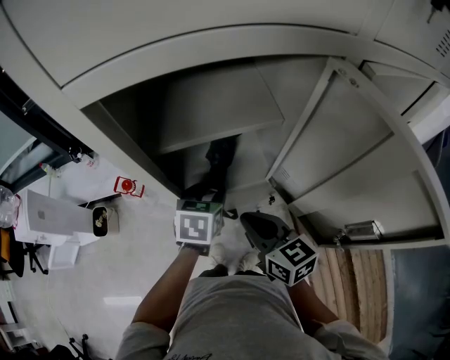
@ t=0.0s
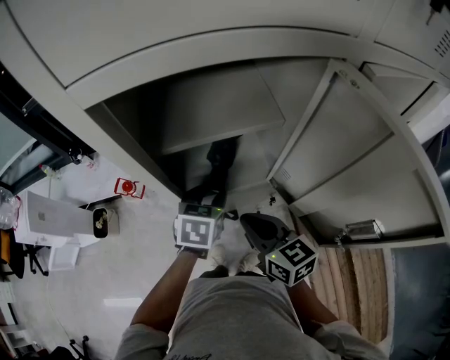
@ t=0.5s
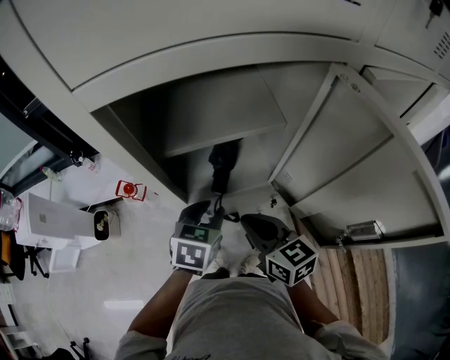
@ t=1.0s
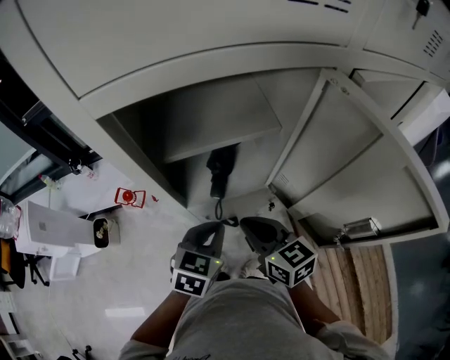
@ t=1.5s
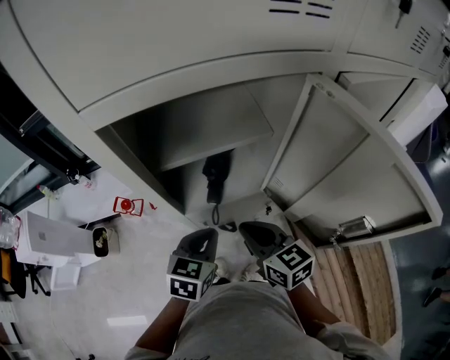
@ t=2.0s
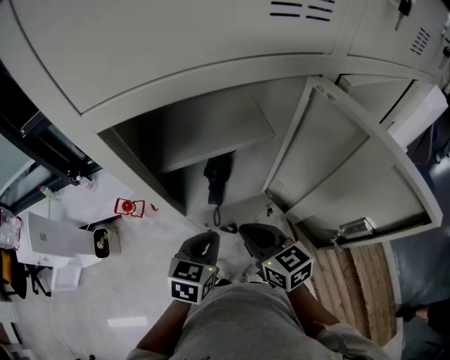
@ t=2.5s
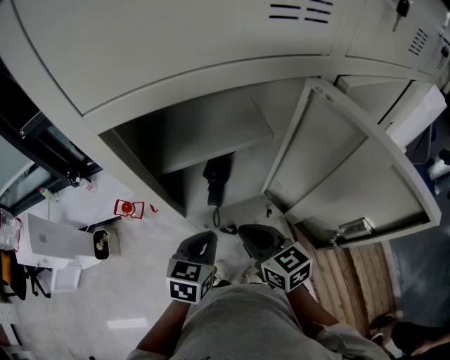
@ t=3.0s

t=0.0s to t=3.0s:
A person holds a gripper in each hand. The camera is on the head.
t=0.0s to t=1.5s: The left gripper heads backward, covering approximately 10 cm, and closes its fingers.
t=1.5s to t=3.0s: There are only small adjustments of the grippers.

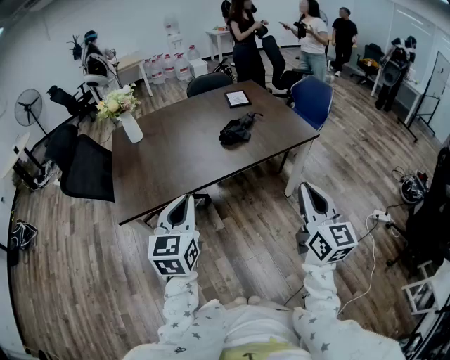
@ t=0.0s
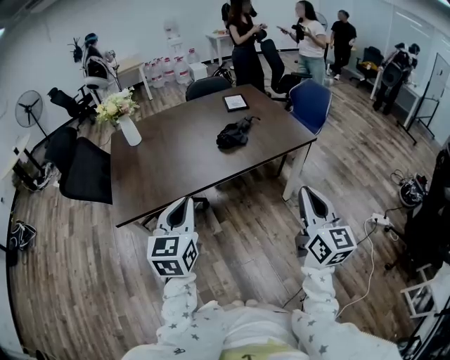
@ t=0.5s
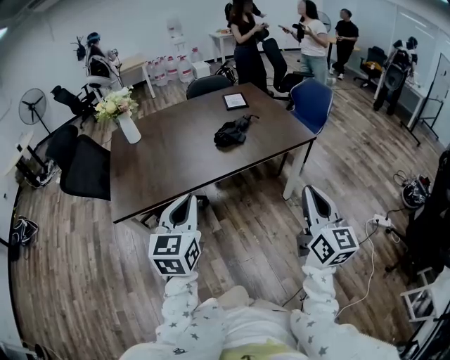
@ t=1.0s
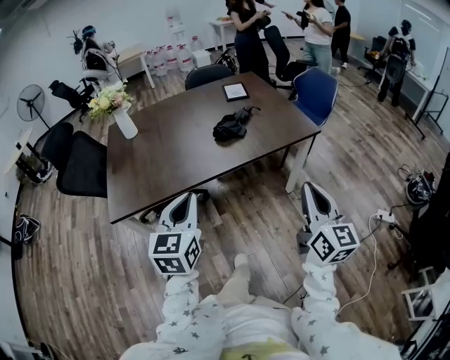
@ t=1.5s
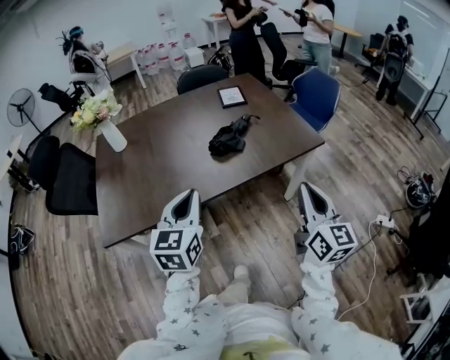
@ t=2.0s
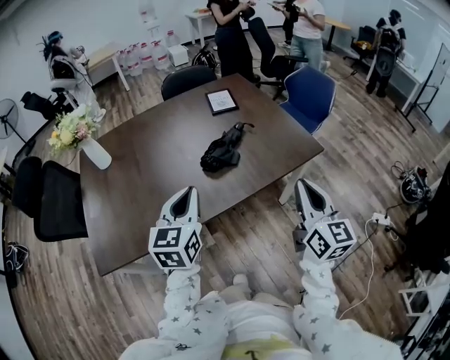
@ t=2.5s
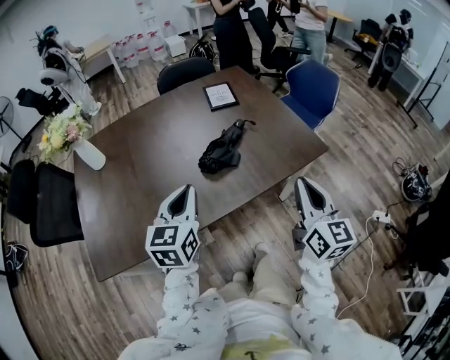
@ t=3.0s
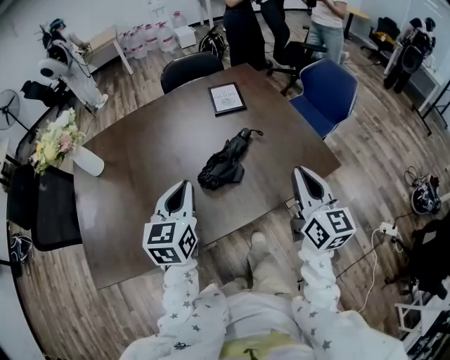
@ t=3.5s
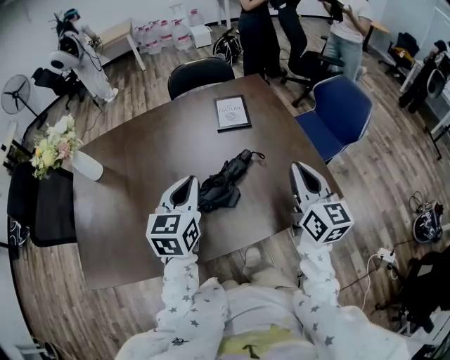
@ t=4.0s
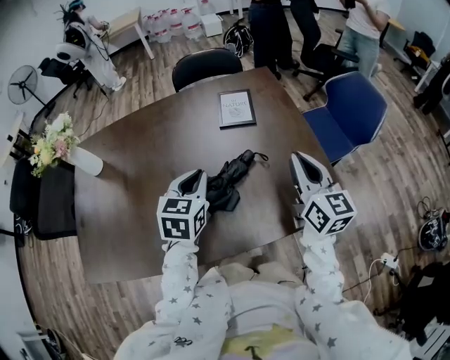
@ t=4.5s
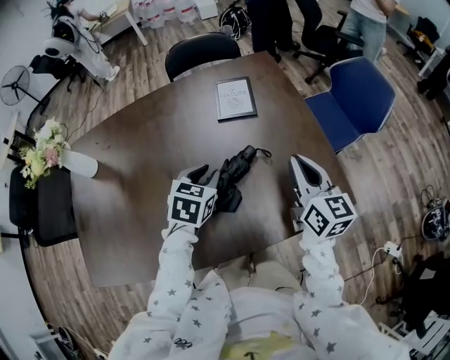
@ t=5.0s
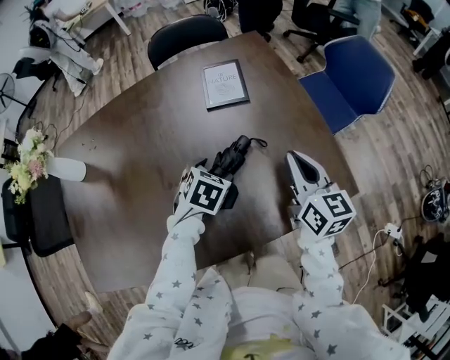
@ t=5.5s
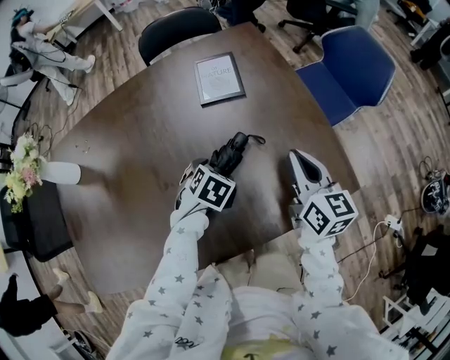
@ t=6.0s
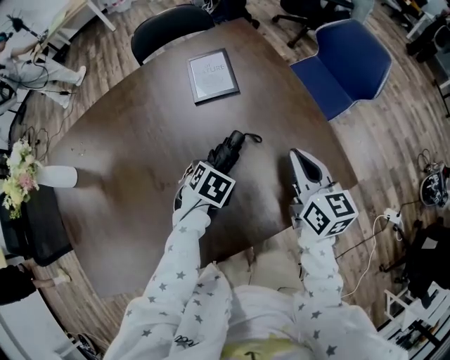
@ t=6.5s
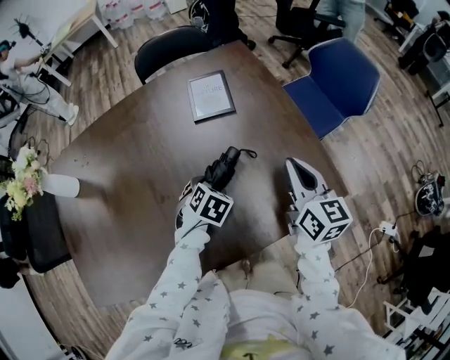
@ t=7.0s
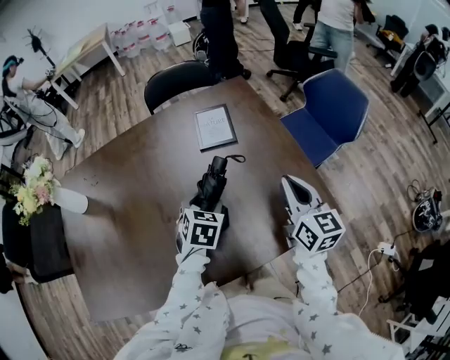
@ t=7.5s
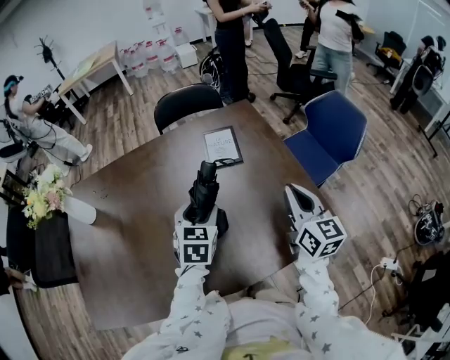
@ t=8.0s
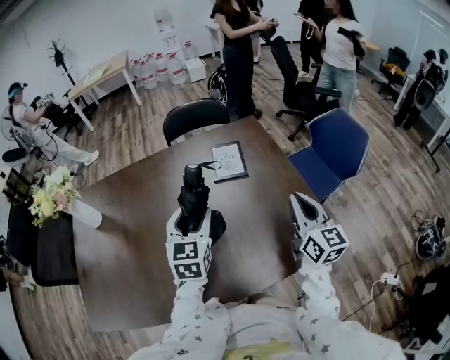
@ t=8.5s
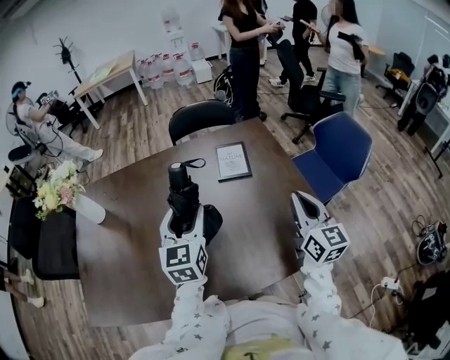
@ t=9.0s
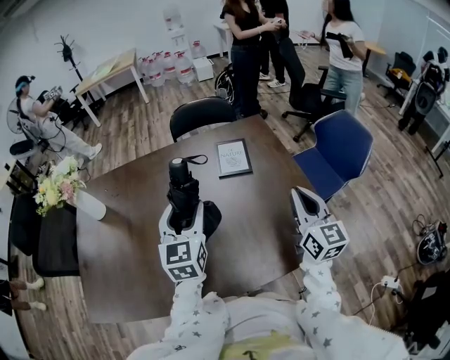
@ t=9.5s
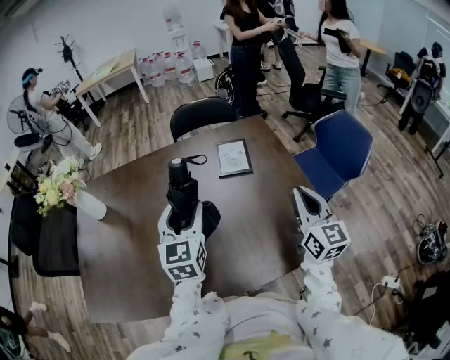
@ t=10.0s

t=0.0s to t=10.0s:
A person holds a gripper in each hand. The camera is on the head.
t=0.0s to t=2.0s: Both grippers move forward, about 15 cm.
t=2.0s to t=4.0s: Both grippers travel together forward, approximately 35 cm.
t=4.0s to t=6.0s: The right gripper goes some 15 cm downward and forward. Meanwhile the left gripper moves downward, some 25 cm, tips its fingers downward by some 50 degrees, and opens.
t=6.0s to t=8.0s: The right gripper moves upward, some 10 cm. Meanwhile the left gripper moves upward, approximately 15 cm, and points its fingers some 40 degrees further upward.
t=8.0s to t=10.0s: The left gripper travels upward and to the left by roughly 10 cm, and changes its angle by some 30 degrees.

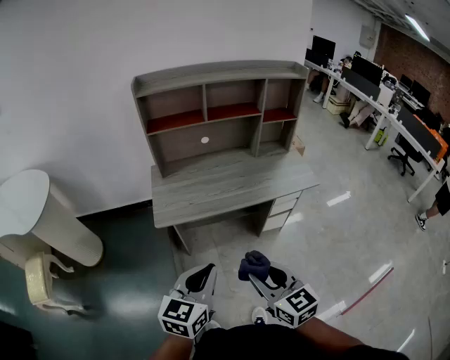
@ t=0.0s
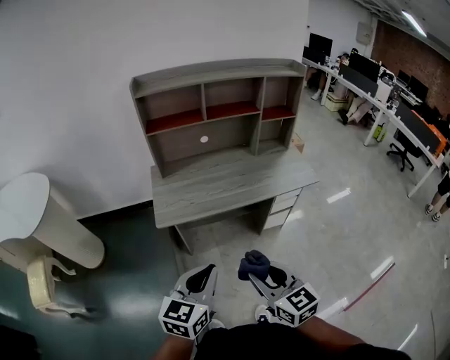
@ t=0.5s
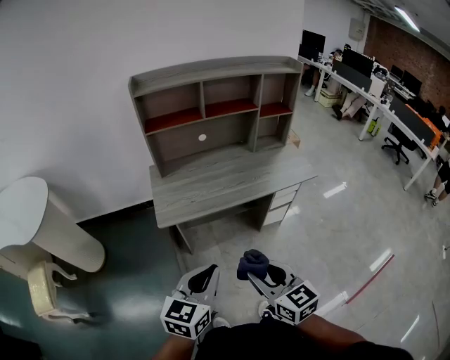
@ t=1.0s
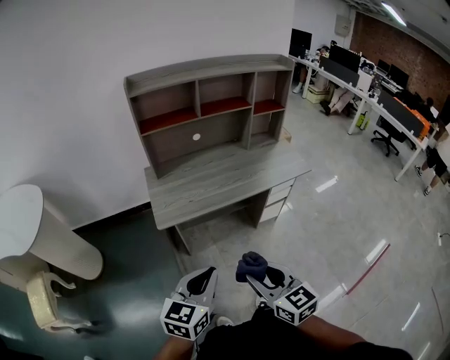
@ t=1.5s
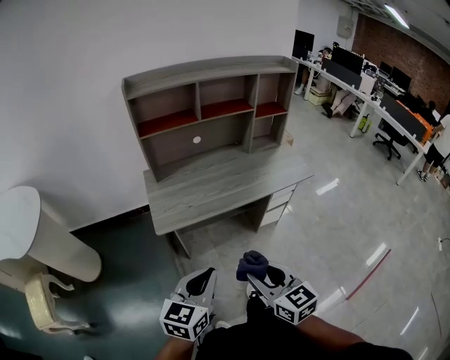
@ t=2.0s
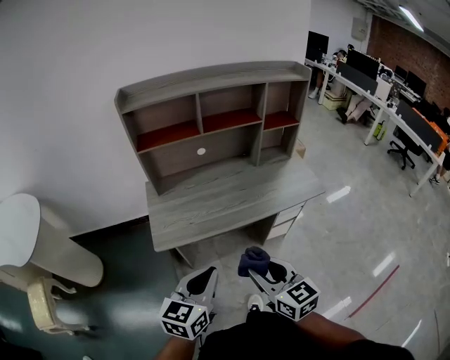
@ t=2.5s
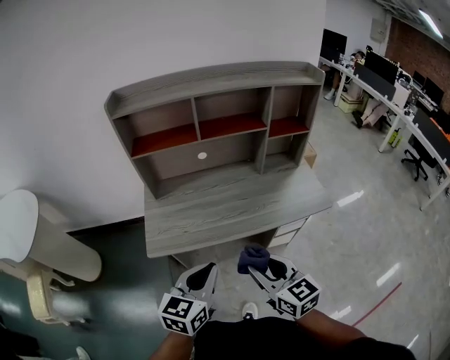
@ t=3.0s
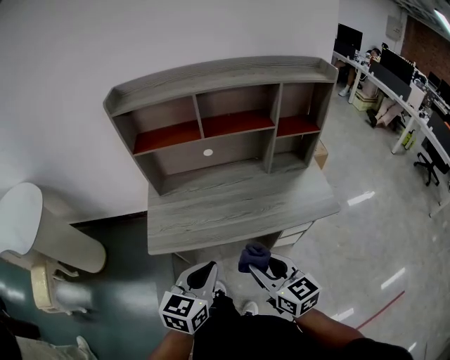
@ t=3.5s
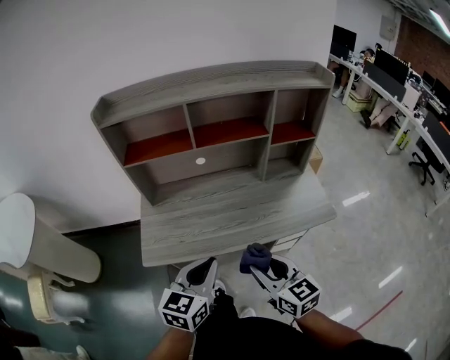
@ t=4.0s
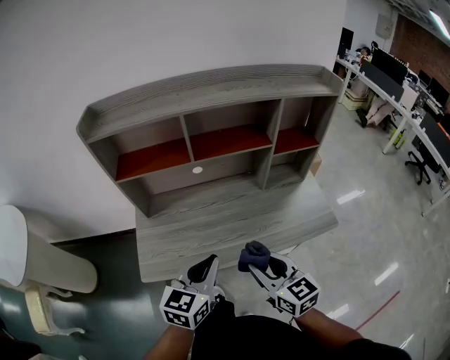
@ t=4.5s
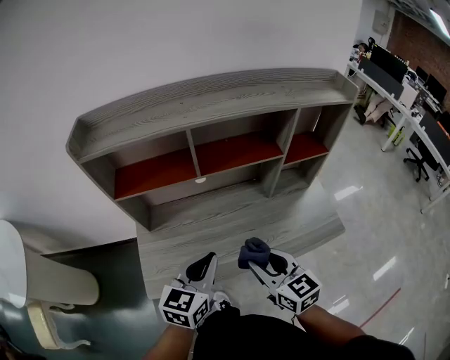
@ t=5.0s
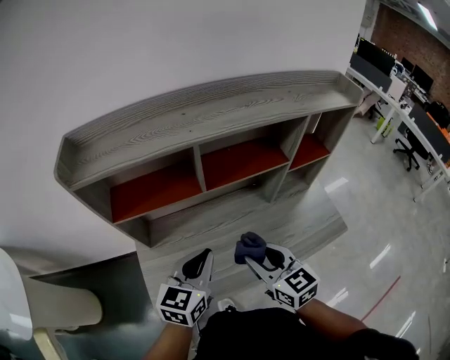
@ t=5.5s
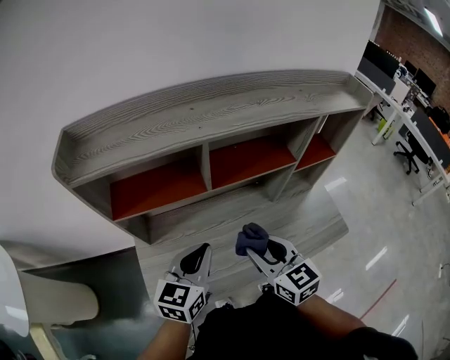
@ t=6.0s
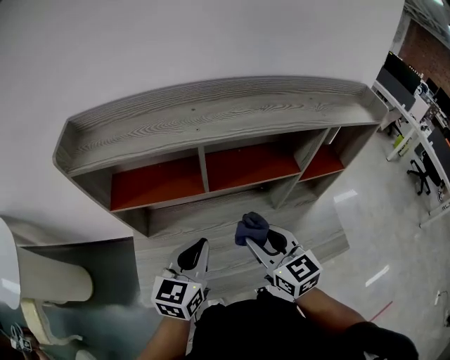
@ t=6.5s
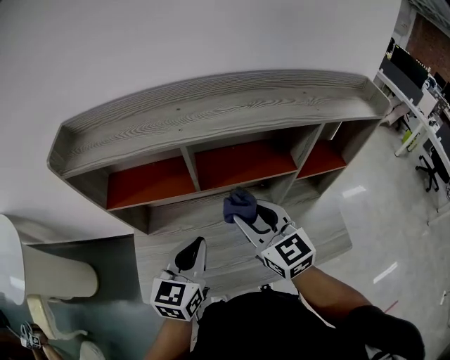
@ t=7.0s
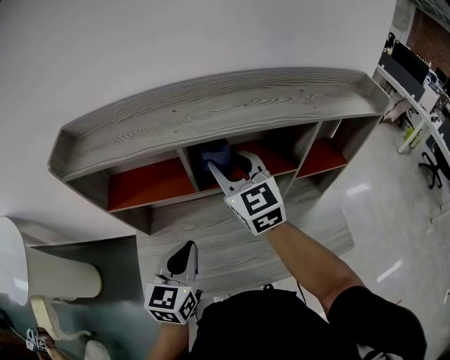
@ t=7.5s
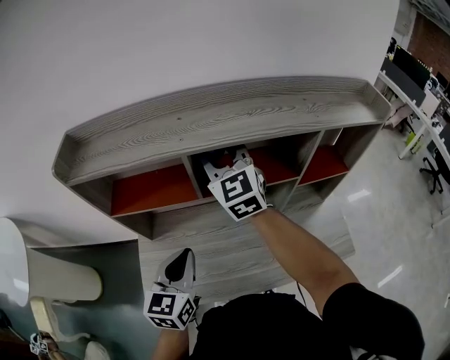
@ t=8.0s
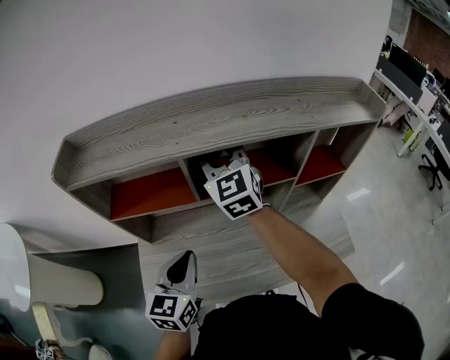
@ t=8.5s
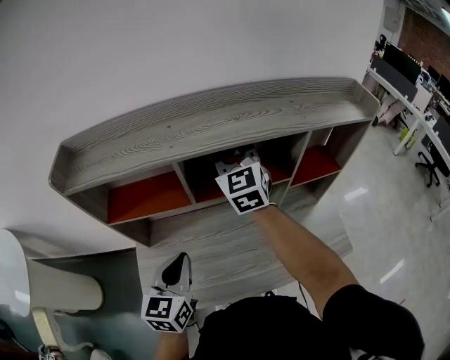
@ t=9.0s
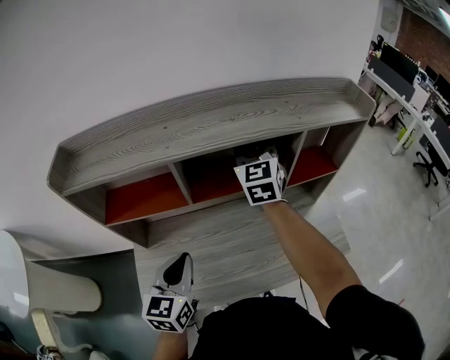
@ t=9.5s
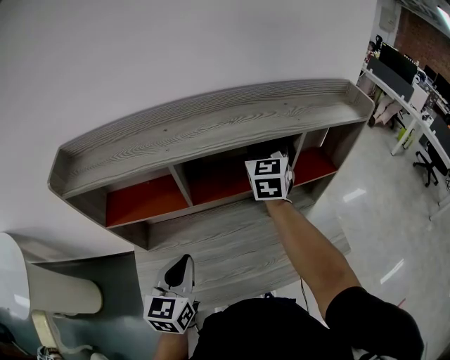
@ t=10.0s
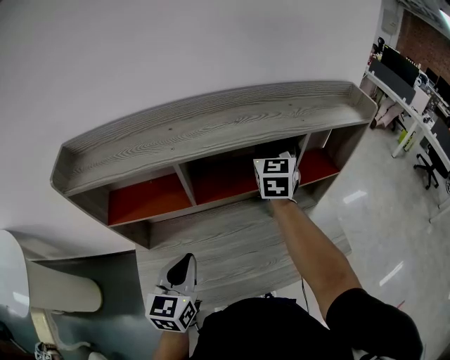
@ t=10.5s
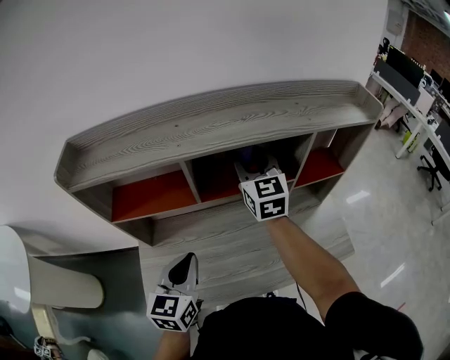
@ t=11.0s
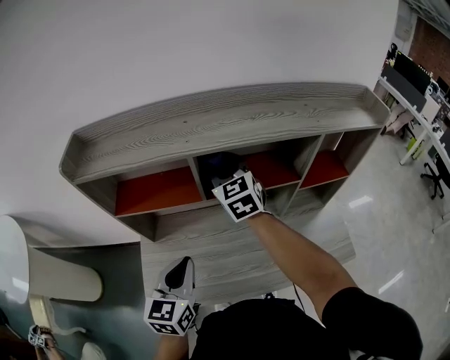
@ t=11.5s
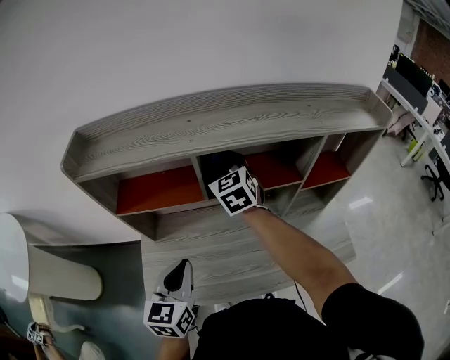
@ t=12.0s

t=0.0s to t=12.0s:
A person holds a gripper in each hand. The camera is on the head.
t=0.0s to t=2.0s: Both grippers move to the left, some 5 cm.
t=2.0s to t=4.0s: Both grippers move forward and to the right, approximately 30 cm.
t=4.0s to t=6.0s: Both grippers move forward, approximately 25 cm.
t=6.0s to t=8.0s: The right gripper travels forward and upward by approximately 30 cm, and changes its angle by about 30 degrees.
t=8.0s to t=10.0s: The right gripper travels to the right by roughly 20 cm, and swivels about 30 degrees.
t=10.0s to t=12.0s: The right gripper shifts approximately 20 cm to the left, and turns by some 30 degrees.

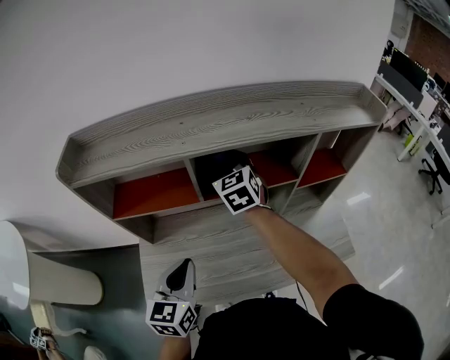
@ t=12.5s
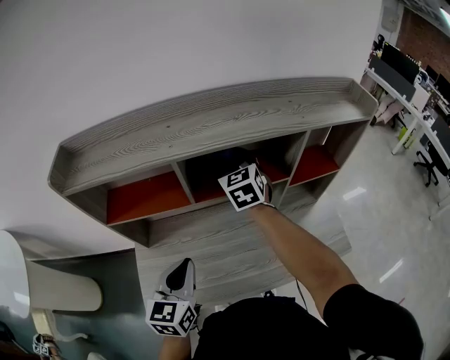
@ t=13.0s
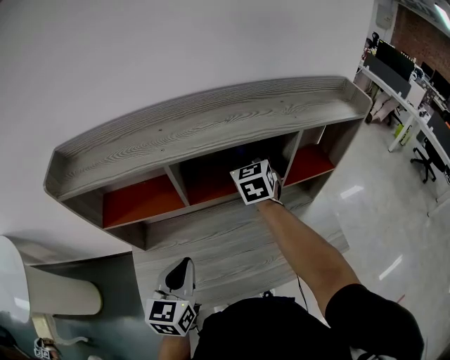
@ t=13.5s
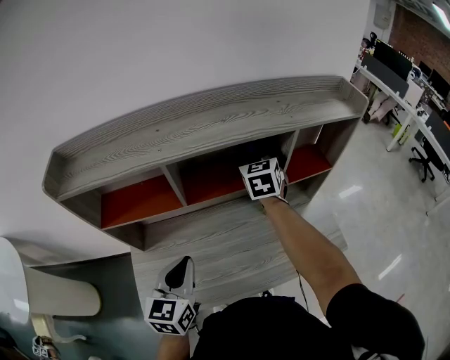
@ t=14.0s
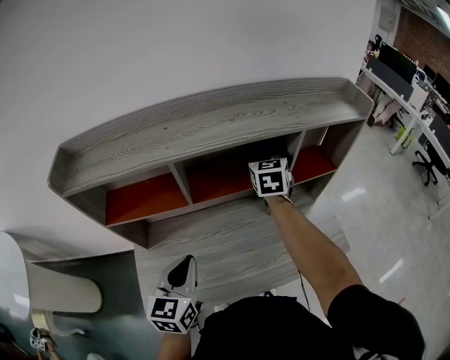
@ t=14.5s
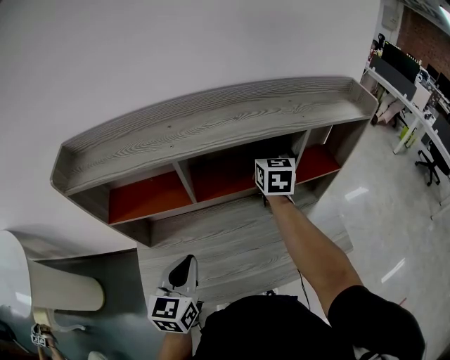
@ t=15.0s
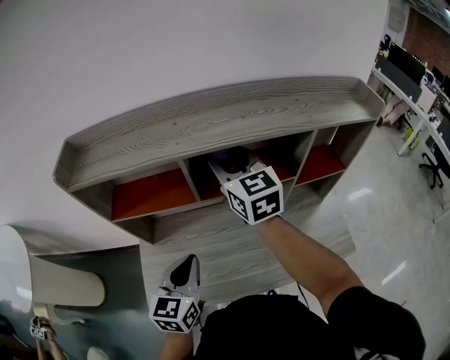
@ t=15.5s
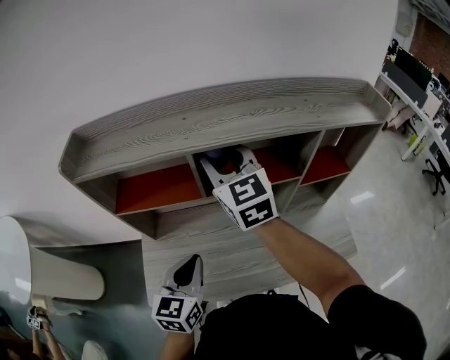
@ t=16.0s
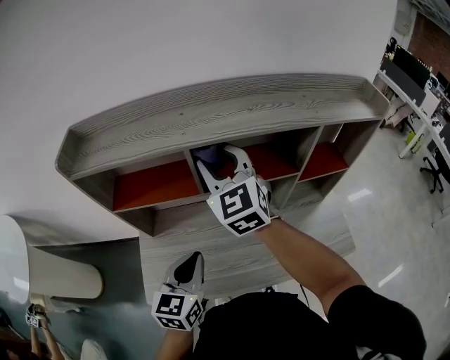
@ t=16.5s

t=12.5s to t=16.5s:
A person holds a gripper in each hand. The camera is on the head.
t=12.5s to t=14.5s: The right gripper goes some 15 cm to the right, and swivels some 20 degrees.
t=14.5s to t=16.5s: The right gripper moves to the left, backward and upward, some 25 cm, and rotates roughly 30 degrees.
